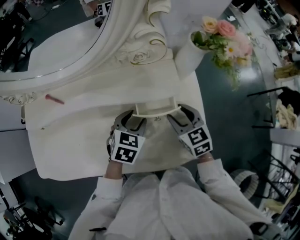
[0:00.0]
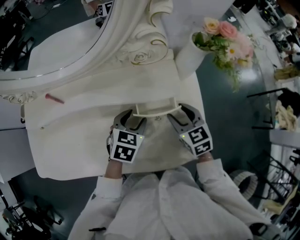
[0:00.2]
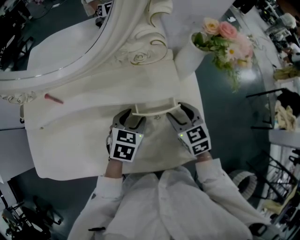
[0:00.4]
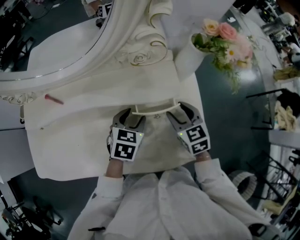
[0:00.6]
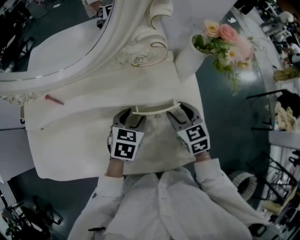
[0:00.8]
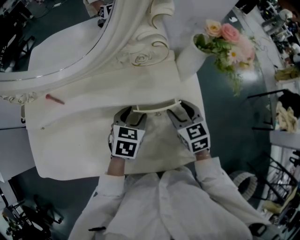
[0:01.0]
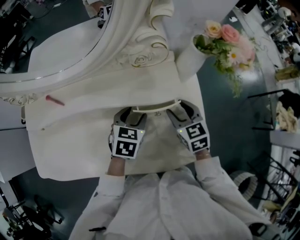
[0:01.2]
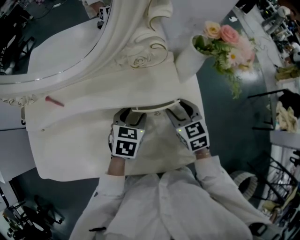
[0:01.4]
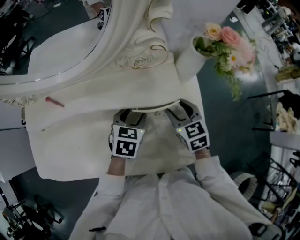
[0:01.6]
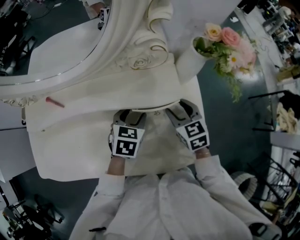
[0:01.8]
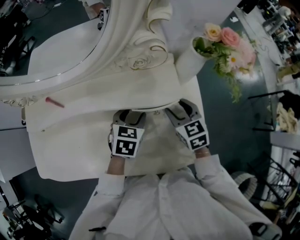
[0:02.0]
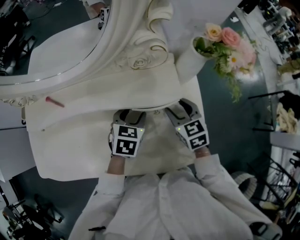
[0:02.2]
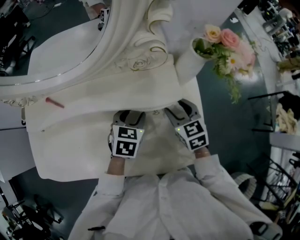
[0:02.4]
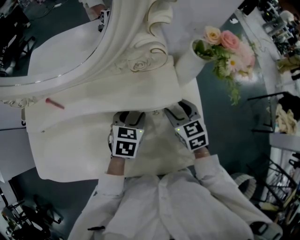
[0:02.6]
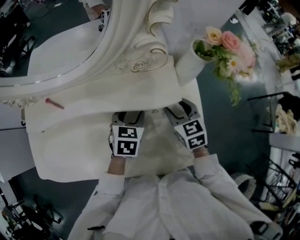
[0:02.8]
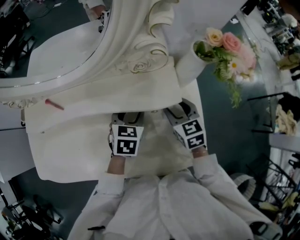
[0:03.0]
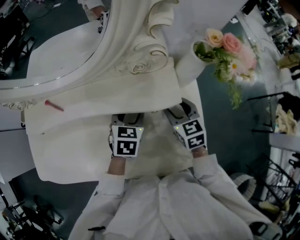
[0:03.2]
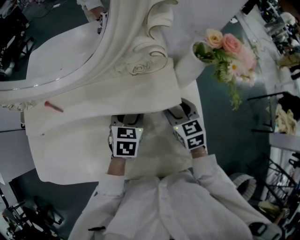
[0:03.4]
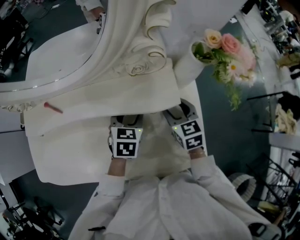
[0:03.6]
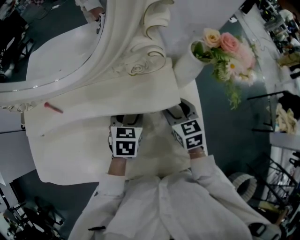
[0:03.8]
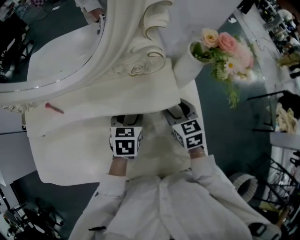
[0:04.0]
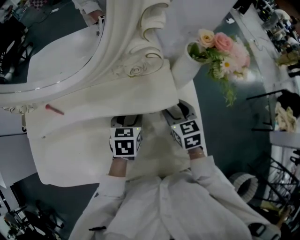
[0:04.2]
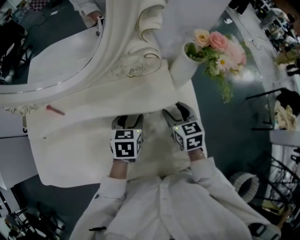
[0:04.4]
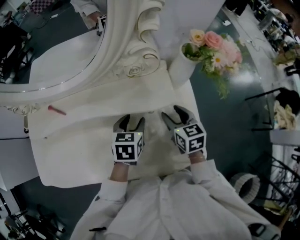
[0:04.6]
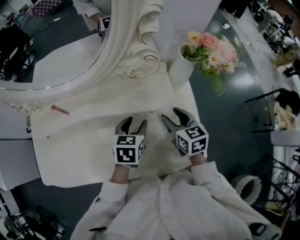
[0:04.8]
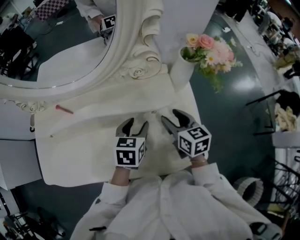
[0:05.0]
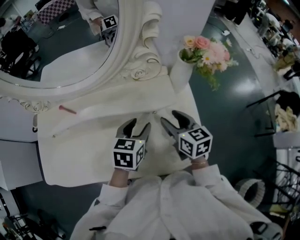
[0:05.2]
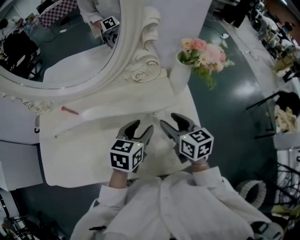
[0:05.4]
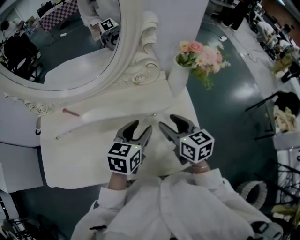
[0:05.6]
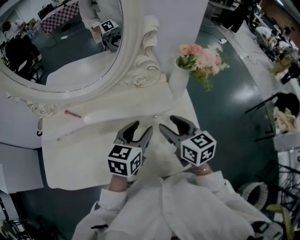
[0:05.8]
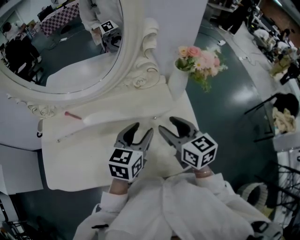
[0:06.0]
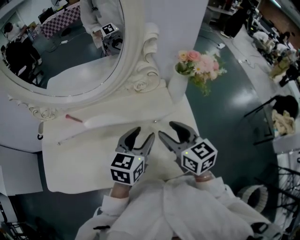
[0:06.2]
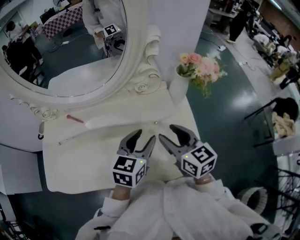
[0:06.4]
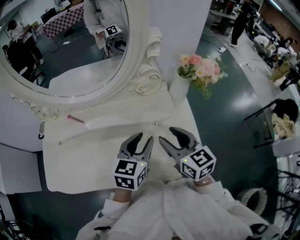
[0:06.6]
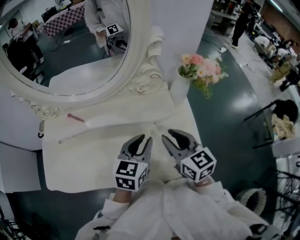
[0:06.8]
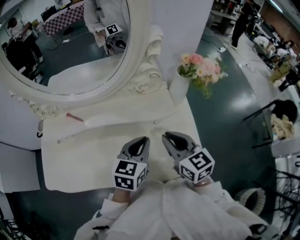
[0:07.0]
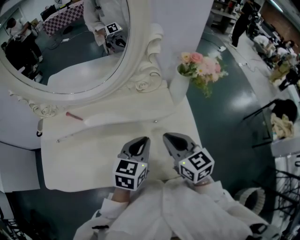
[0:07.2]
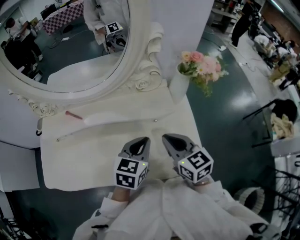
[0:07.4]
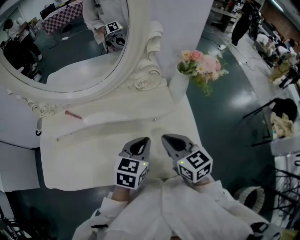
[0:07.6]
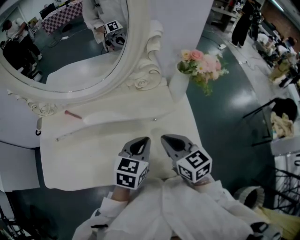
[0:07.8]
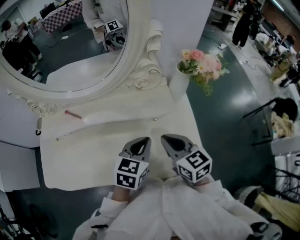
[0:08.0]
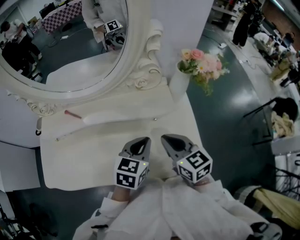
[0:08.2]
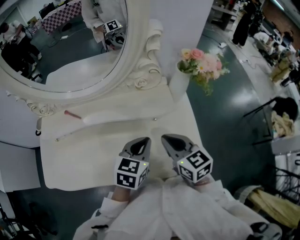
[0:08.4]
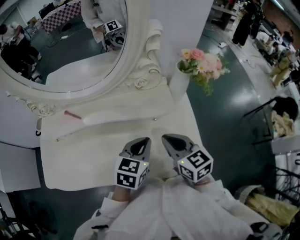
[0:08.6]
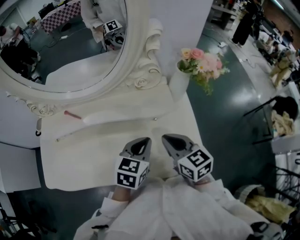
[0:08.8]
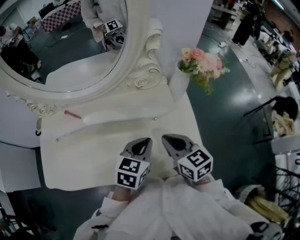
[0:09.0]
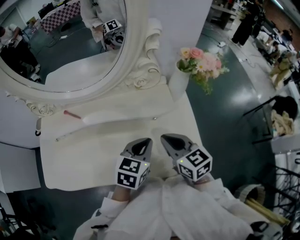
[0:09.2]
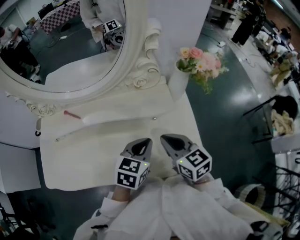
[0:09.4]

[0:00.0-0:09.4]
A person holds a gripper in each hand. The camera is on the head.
0:00.0 to 0:01.6: The grippers stay close to where they were, moving slightly.
0:01.6 to 0:03.2: There are only small adjustments of the grippers.
0:03.2 to 0:04.8: The left gripper ends up approximately 5 cm from where it was.
0:04.8 to 0:06.2: The right gripper moves upward and backward, approximately 15 cm. The left gripper goes roughly 15 cm upward, and changes its angle by some 20 degrees.
0:06.2 to 0:07.8: The left gripper closes up, while the right gripper closes.
0:07.8 to 0:09.4: Neither gripper changes place.

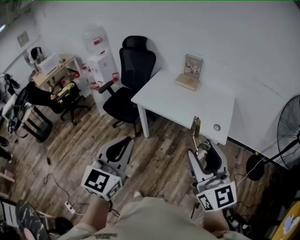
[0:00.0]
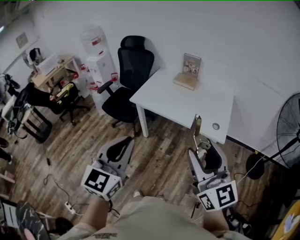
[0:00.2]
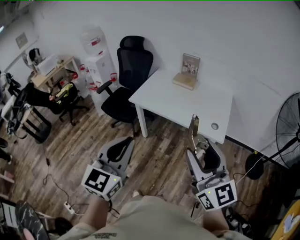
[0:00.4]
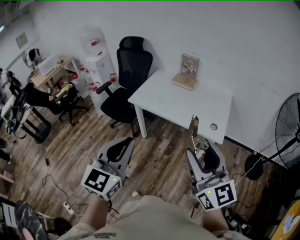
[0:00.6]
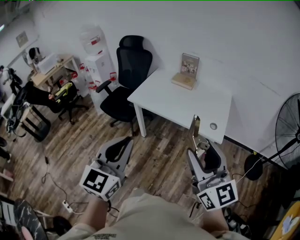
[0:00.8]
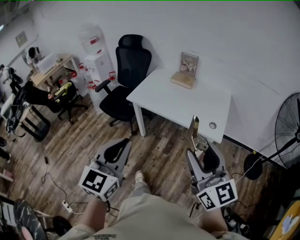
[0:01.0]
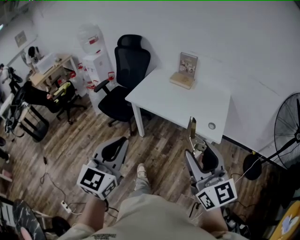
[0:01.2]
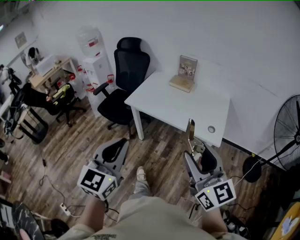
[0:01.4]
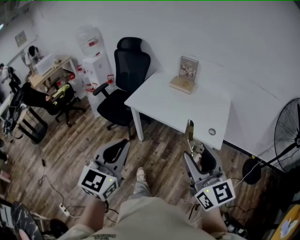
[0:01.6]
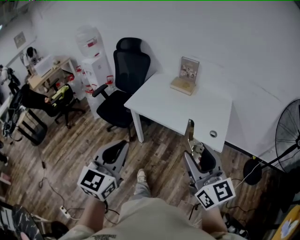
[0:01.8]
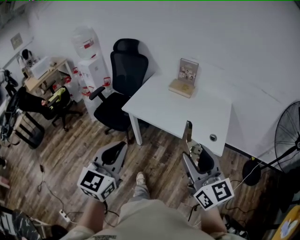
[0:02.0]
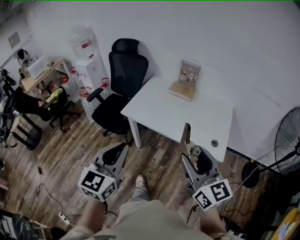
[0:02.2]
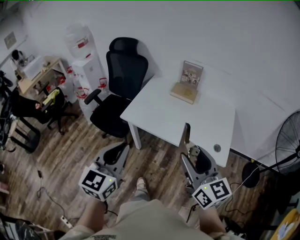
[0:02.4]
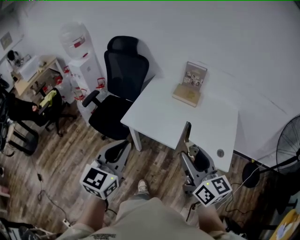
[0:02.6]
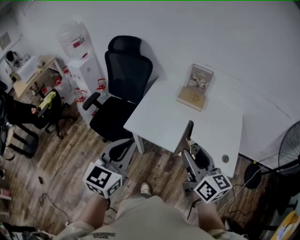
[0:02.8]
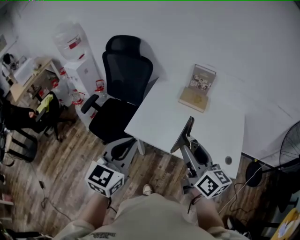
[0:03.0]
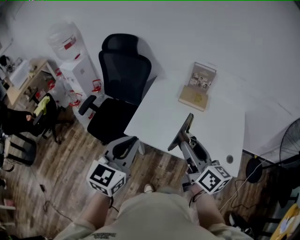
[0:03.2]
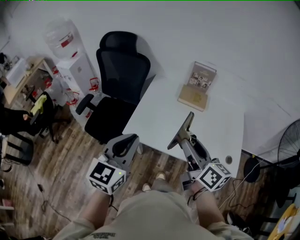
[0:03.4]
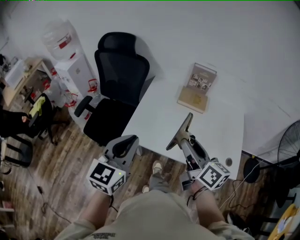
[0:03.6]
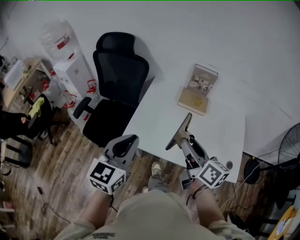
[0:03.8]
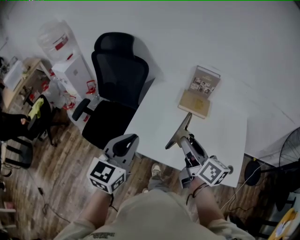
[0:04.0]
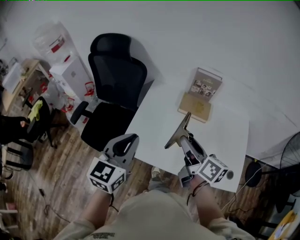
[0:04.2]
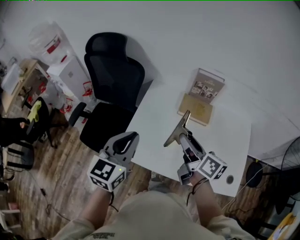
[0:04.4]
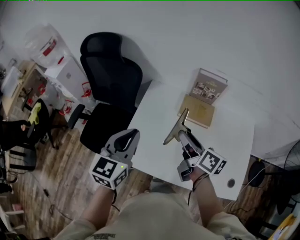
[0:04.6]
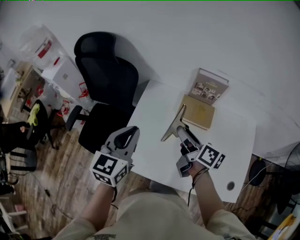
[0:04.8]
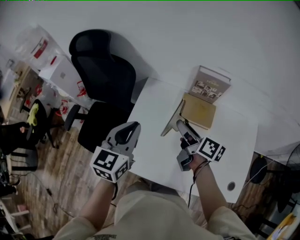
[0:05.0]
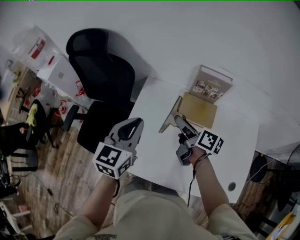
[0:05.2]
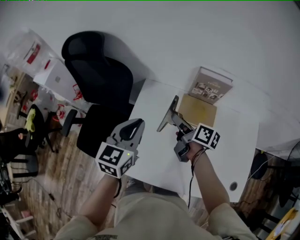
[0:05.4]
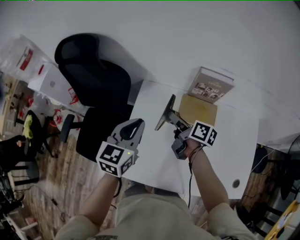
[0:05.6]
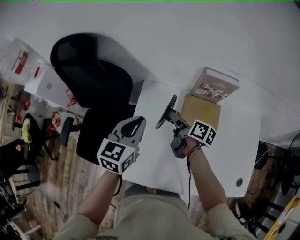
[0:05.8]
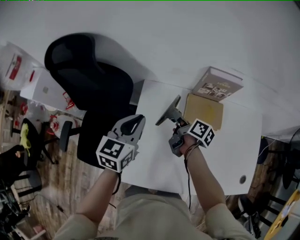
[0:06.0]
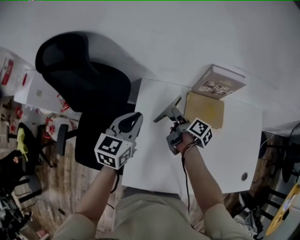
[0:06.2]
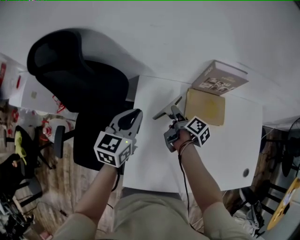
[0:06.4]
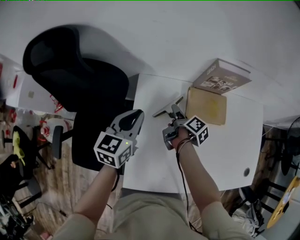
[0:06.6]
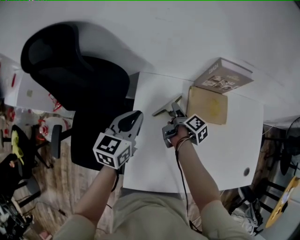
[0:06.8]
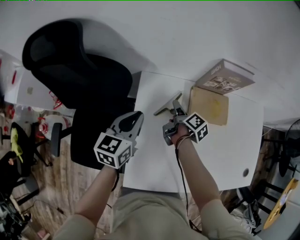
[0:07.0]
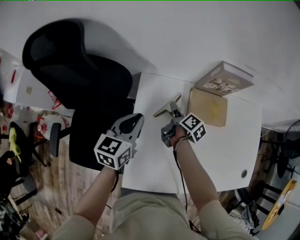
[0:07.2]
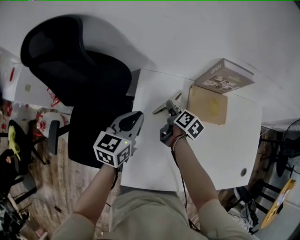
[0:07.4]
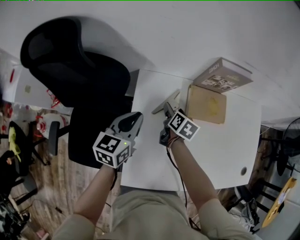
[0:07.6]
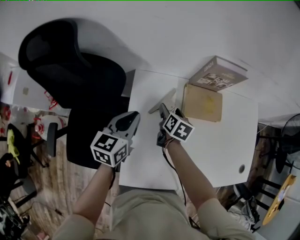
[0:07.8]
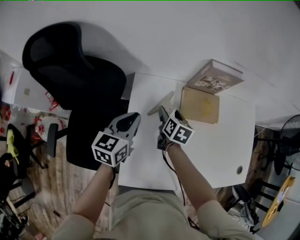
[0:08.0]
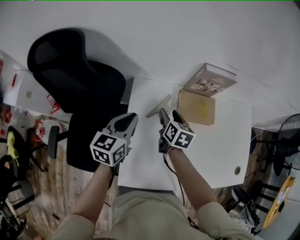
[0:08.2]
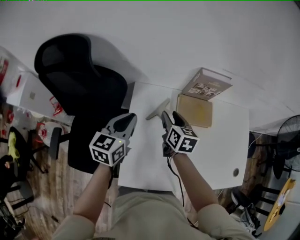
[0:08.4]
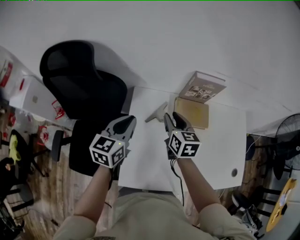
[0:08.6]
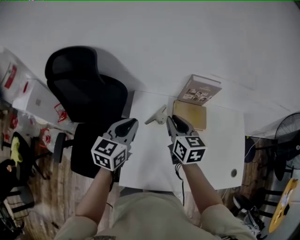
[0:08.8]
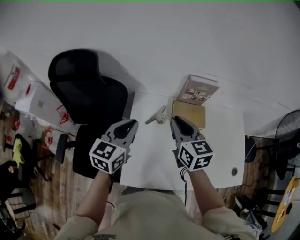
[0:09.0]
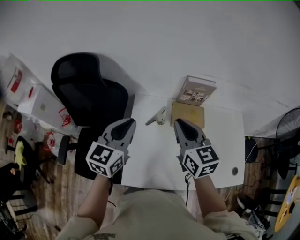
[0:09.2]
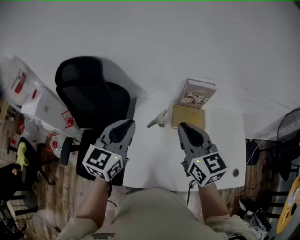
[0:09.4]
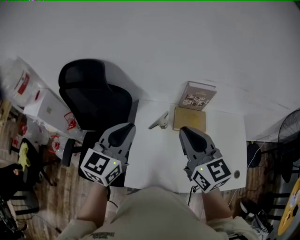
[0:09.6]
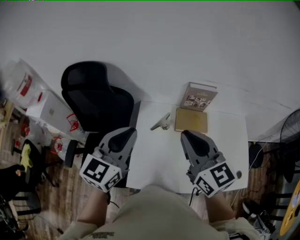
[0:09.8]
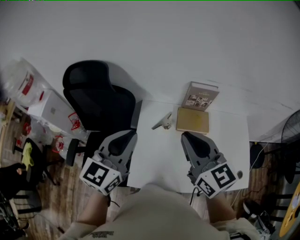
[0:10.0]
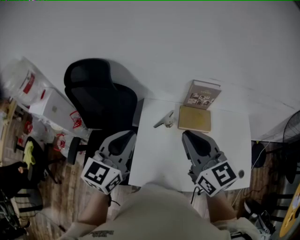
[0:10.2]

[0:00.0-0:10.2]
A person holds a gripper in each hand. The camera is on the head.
0:00.0 to 0:01.4: The grippers make only small movements.
0:01.4 to 0:03.0: Both grippers travel together forward, roughly 40 cm. The right gripper rotates approximately 30 degrees.
0:03.0 to 0:04.4: The two grippers go approximately 25 cm forward. The right gripper swivels approximately 20 degrees.
0:04.4 to 0:05.8: Both grippers move forward and downward, some 25 cm. The right gripper changes its angle by approximately 20 degrees.
0:05.8 to 0:07.2: The left gripper is displaced downward and to the left by about 10 cm. The right gripper travels downward by approximately 15 cm, and turns by roughly 30 degrees.
0:07.2 to 0:08.8: The left gripper travels upward by some 10 cm. The right gripper goes about 25 cm upward, rotates around the line of its fingers by about 60 degrees, counterclockwise from behind, and closes.
0:08.8 to 0:10.2: The grippers both shift upward and backward by roughly 20 cm. The right gripper changes its angle by some 20 degrees.

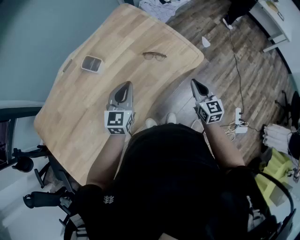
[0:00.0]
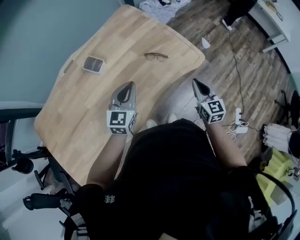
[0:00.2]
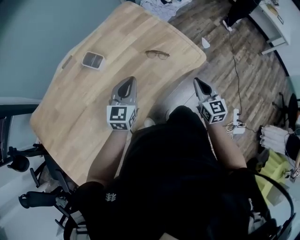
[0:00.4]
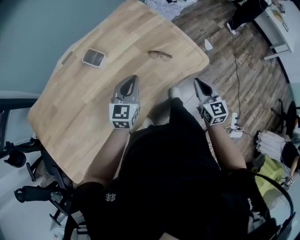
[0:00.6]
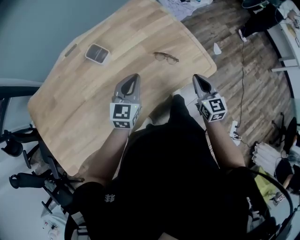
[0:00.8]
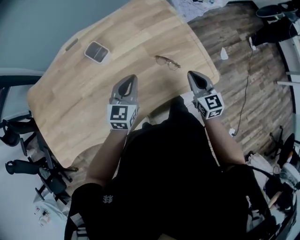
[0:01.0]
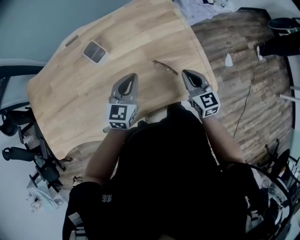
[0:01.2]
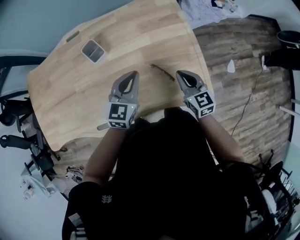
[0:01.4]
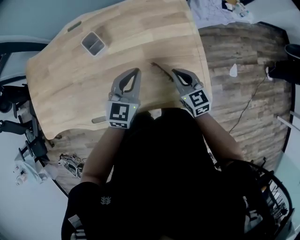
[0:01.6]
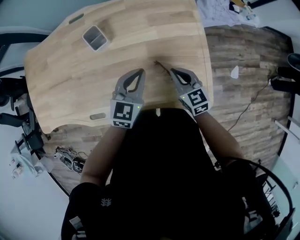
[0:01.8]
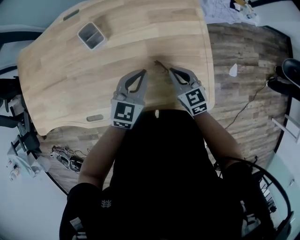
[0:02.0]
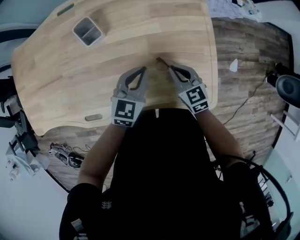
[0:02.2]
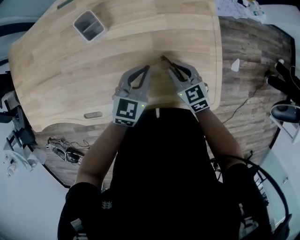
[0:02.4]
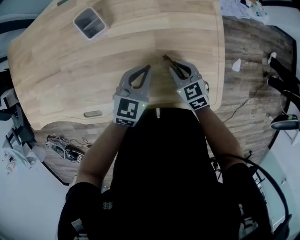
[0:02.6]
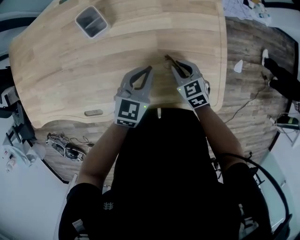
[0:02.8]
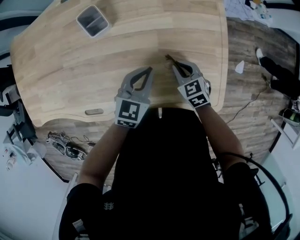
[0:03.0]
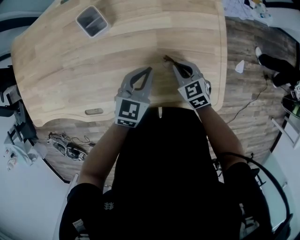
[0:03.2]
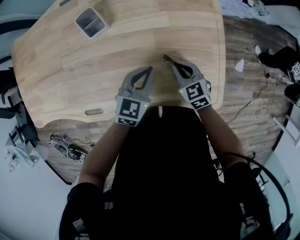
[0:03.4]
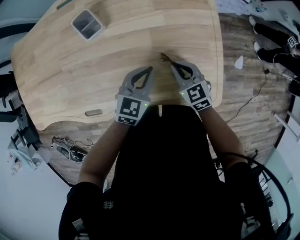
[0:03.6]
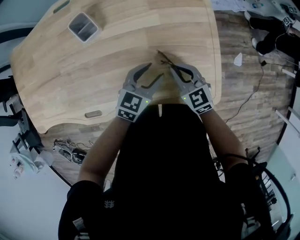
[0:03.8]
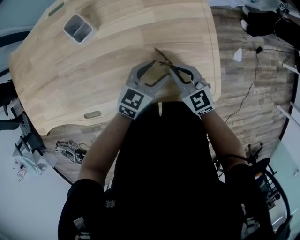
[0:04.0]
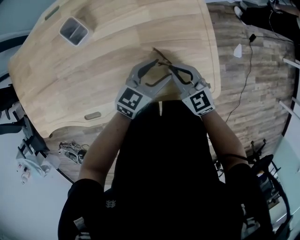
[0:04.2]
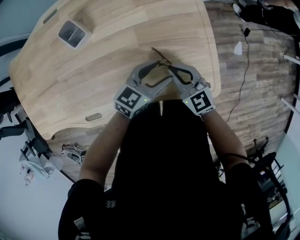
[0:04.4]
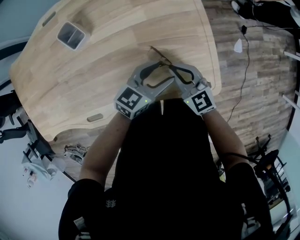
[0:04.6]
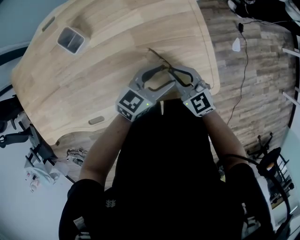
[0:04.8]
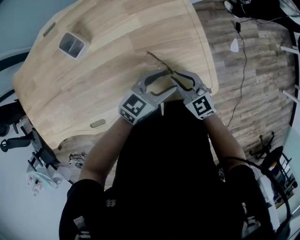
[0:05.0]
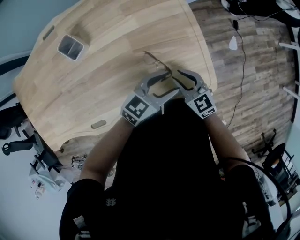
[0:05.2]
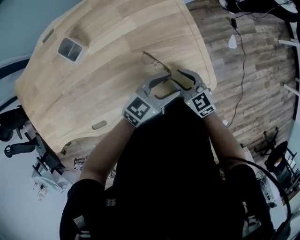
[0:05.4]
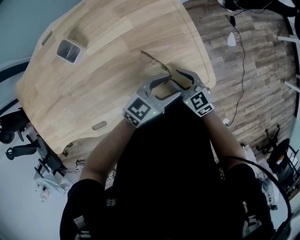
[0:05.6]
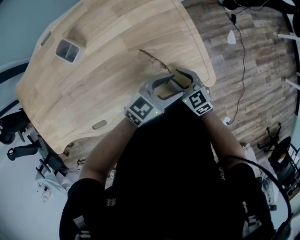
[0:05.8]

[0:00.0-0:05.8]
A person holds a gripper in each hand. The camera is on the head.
0:00.0 to 0:01.4: The right gripper shifts by about 25 cm, and rotates approximately 40 degrees, while the left gripper moves about 20 cm, and rotates roughly 20 degrees.
0:01.4 to 0:02.8: The right gripper is displaced downward and to the left by some 15 cm, and turns by approximately 30 degrees. The left gripper moves downward, some 10 cm.
0:02.8 to 0:04.4: The right gripper moves upward, some 5 cm, and swivels roughly 20 degrees. The left gripper heads to the right, covering roughly 10 cm, swivels approximately 30 degrees, and opens.
0:04.4 to 0:05.8: Both grippers move to the right and backward, some 10 cm. The right gripper opens its fingers.
